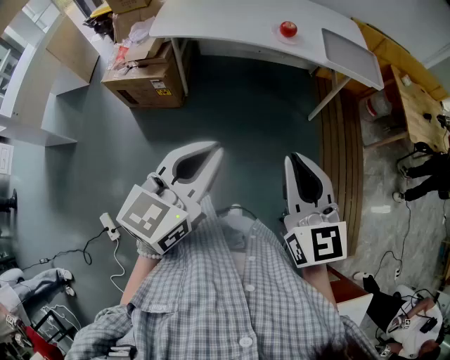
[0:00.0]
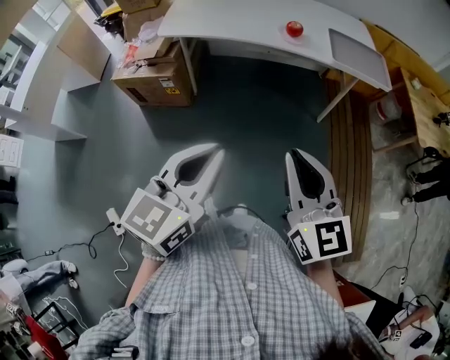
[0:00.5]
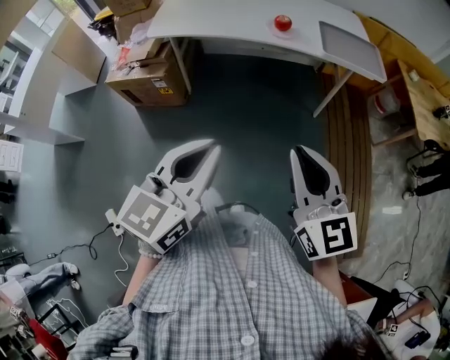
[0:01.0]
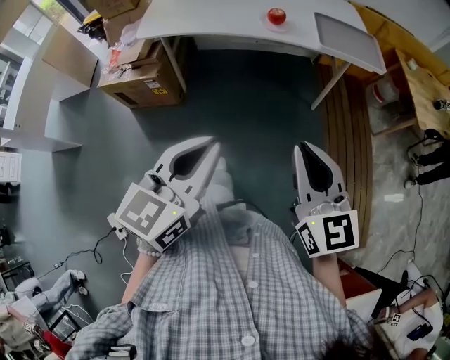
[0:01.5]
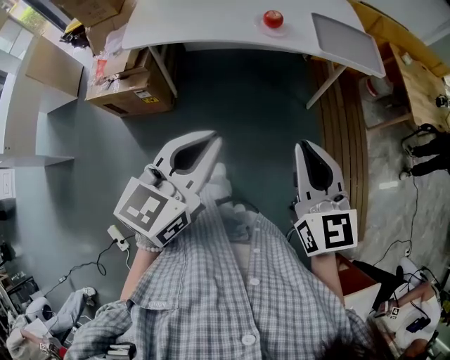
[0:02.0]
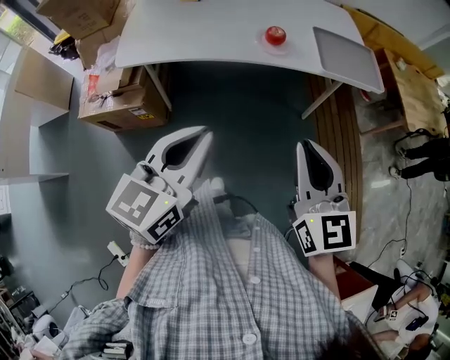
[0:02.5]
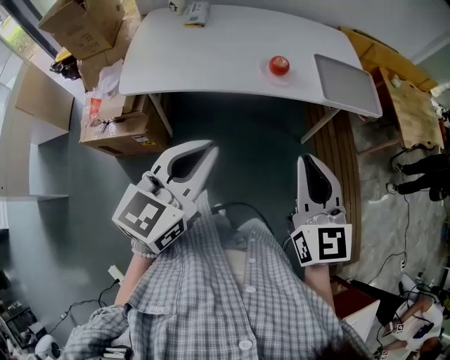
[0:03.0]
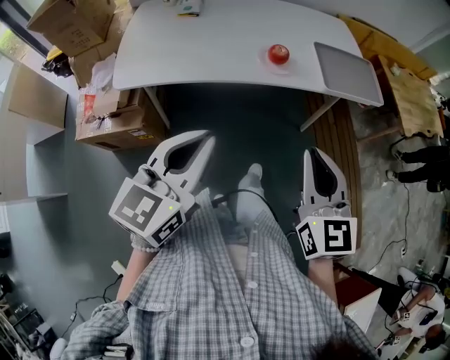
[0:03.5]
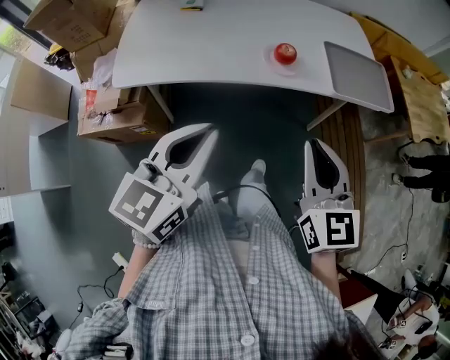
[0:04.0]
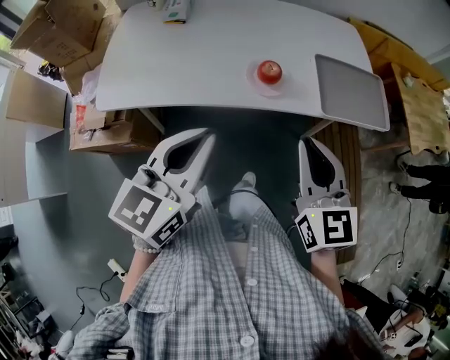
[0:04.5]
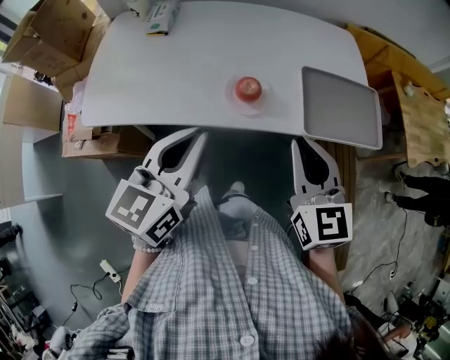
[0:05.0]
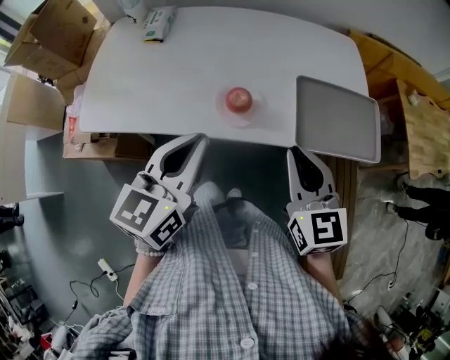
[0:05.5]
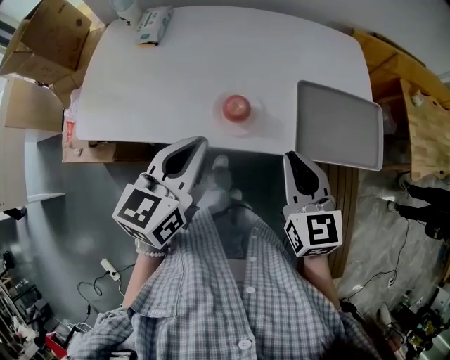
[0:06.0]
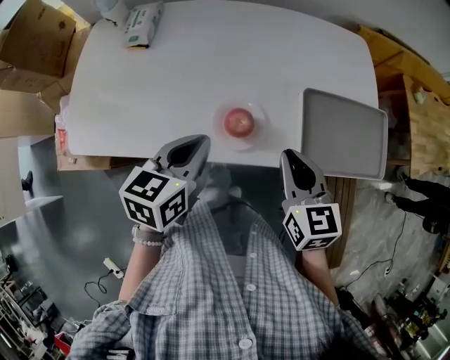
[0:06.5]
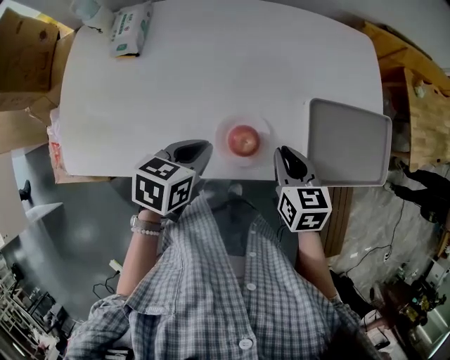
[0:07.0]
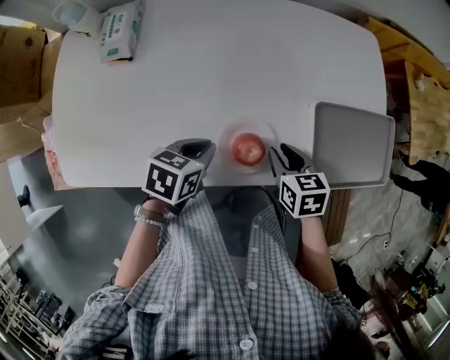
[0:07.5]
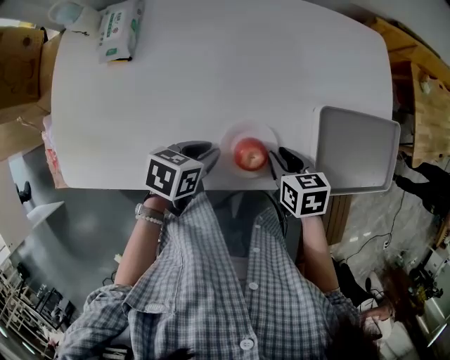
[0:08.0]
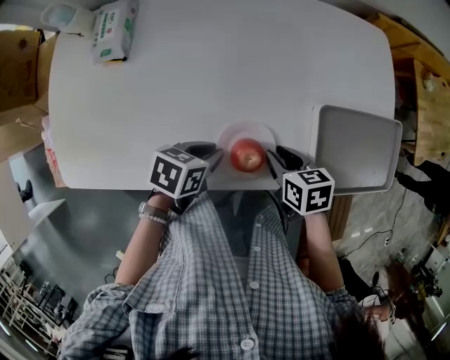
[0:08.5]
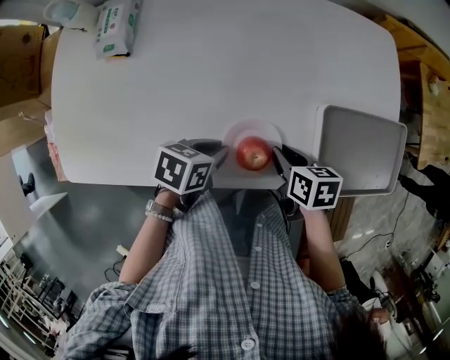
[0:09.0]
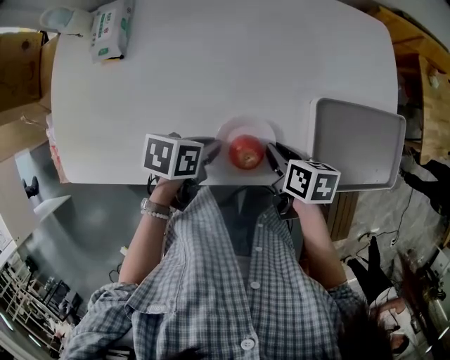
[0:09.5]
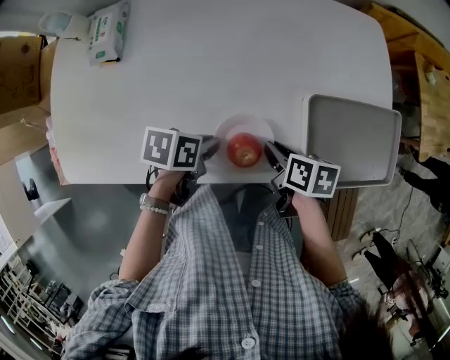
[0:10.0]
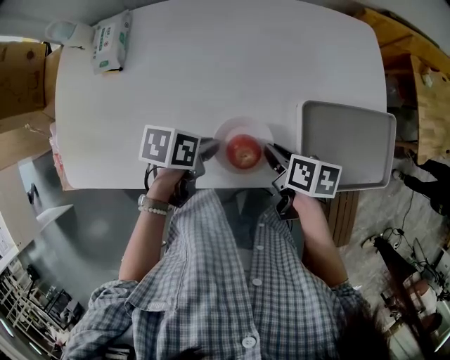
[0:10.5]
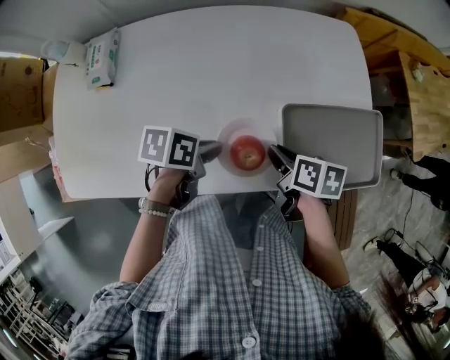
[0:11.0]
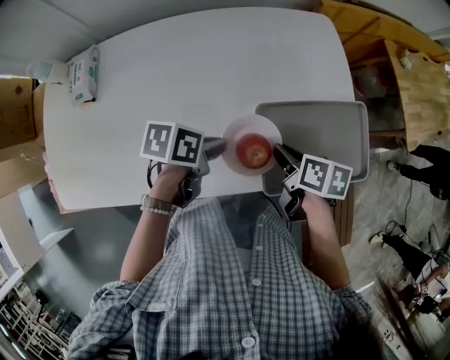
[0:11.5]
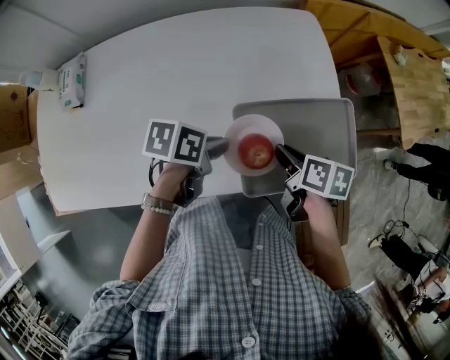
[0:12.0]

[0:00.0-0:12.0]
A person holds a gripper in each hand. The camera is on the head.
0:00.0 to 0:02.0: Both grippers travel together forward, roughly 10 cm.
0:02.0 to 0:04.0: The right gripper moves forward, roughly 15 cm; the left gripper travels forward and to the left by approximately 20 cm.
0:04.0 to 0:06.0: The grippers both shift forward and to the right by roughly 25 cm.
0:06.0 to 0:08.0: Both grippers travel together downward and forward, approximately 25 cm. The left gripper swivels roughly 50 degrees; the right gripper angles its fingers downward, by roughly 40 degrees.
0:08.0 to 0:10.0: The right gripper swivels some 30 degrees.
0:10.0 to 0:12.0: The grippers both shift to the right and forward by about 20 cm.

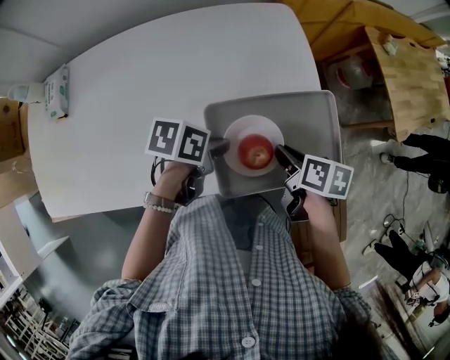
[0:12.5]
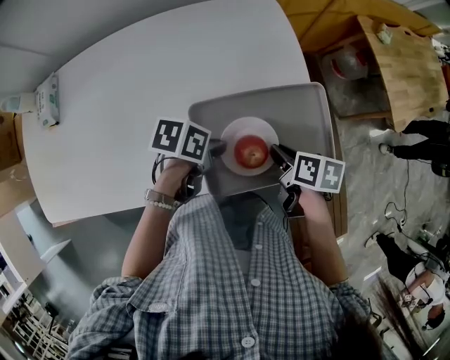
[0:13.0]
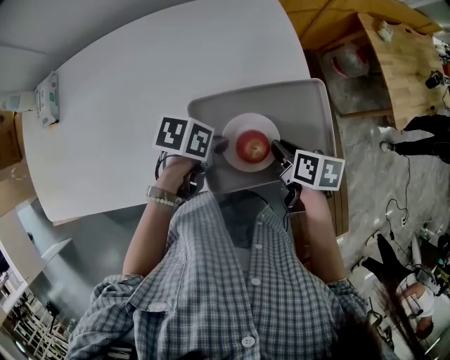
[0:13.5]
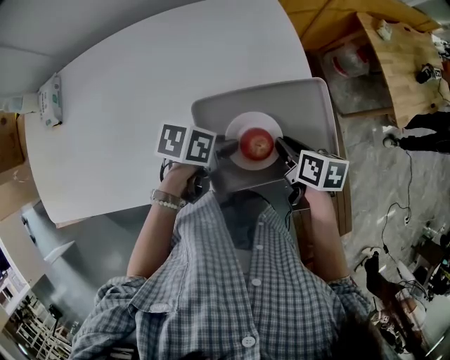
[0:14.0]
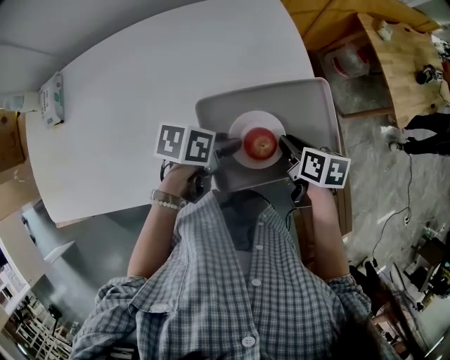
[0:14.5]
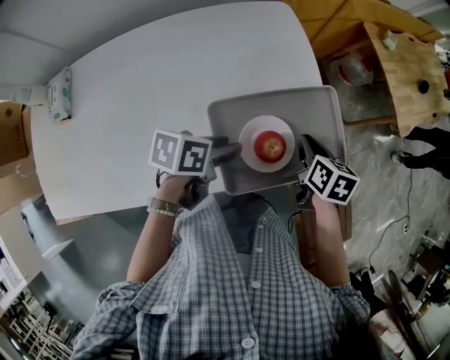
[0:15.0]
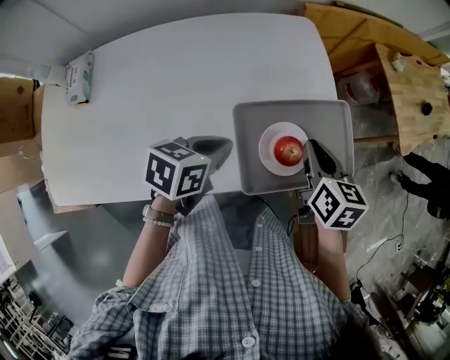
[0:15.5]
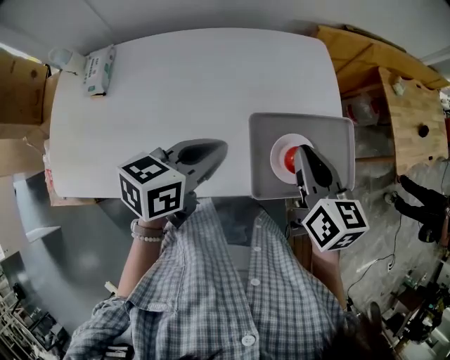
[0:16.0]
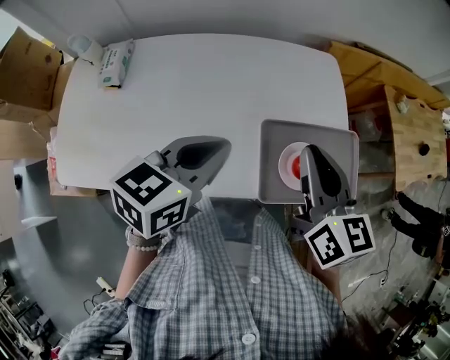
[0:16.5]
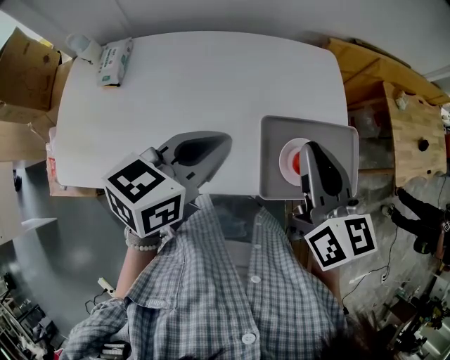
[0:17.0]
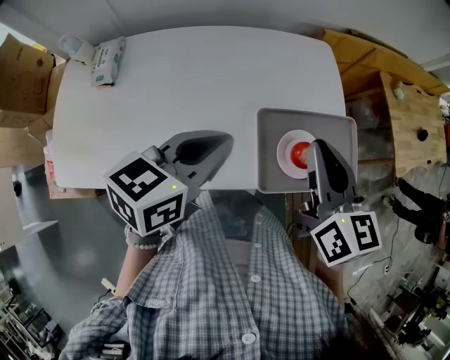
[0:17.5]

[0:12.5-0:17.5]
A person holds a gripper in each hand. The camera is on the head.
0:12.5 to 0:15.0: The left gripper opens, while the right gripper ends up roughly 5 cm from where it was, and changes its angle by approximately 20 degrees.
0:15.0 to 0:17.5: The grippers both shift upward and to the left by some 25 cm. The right gripper points its fingers about 30 degrees further upward, while the left gripper swivels approximately 40 degrees, and closes up.

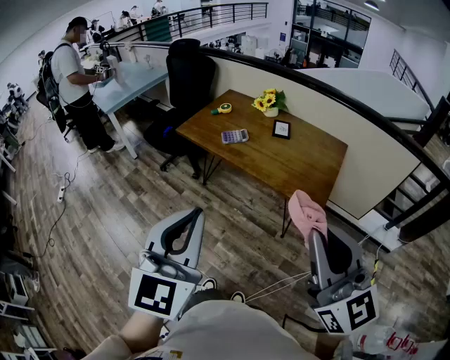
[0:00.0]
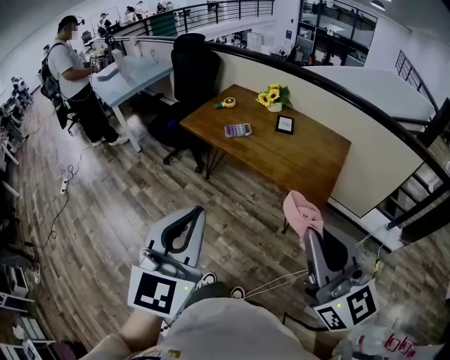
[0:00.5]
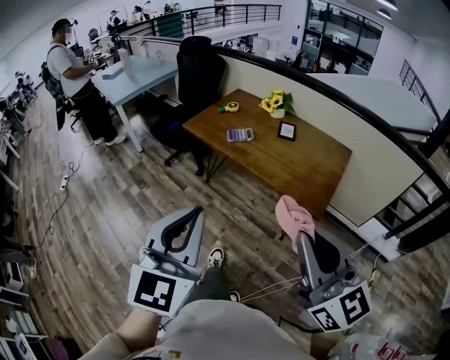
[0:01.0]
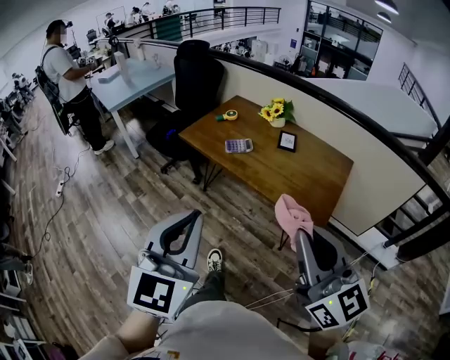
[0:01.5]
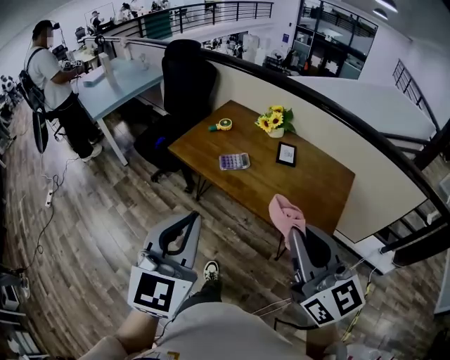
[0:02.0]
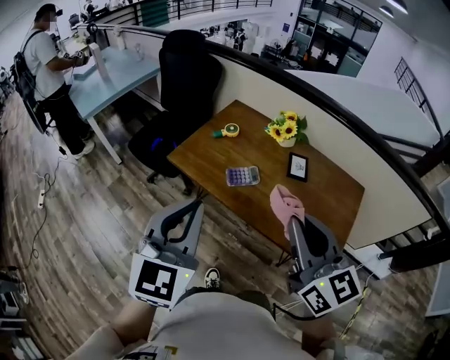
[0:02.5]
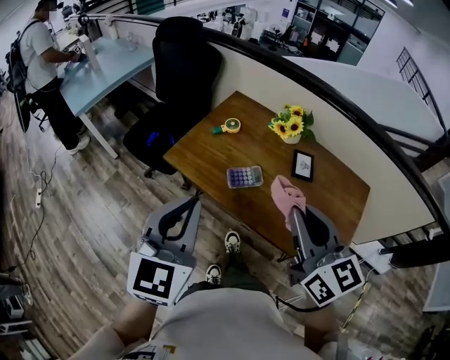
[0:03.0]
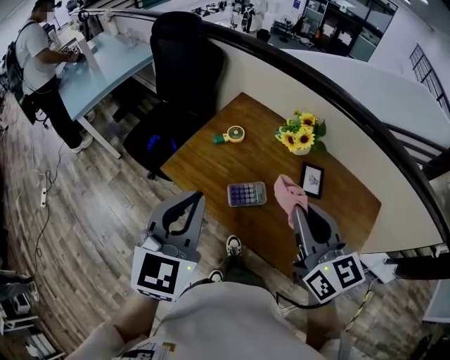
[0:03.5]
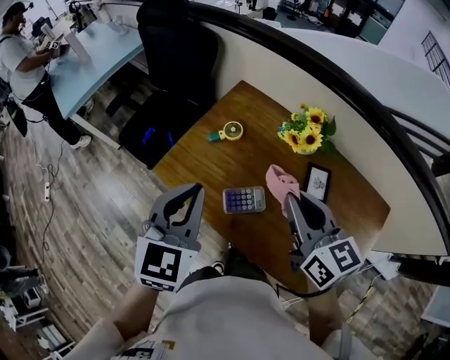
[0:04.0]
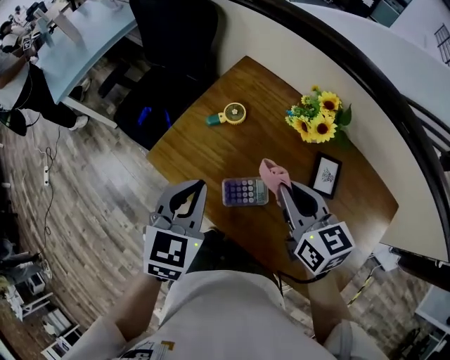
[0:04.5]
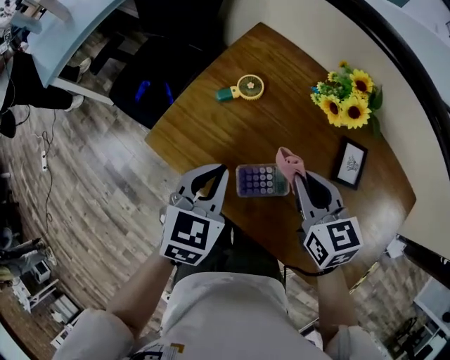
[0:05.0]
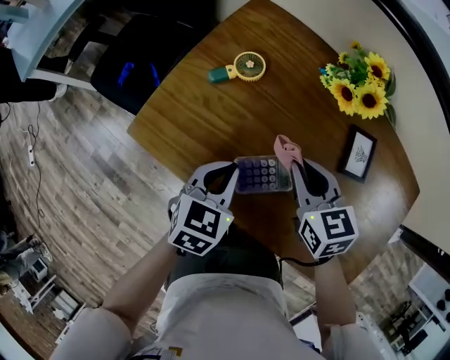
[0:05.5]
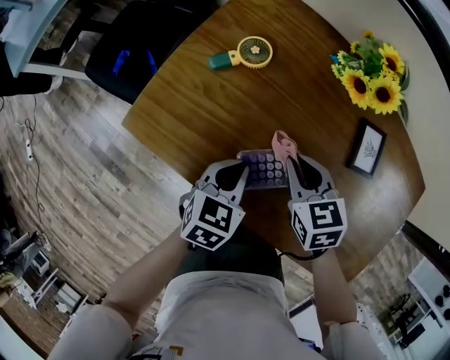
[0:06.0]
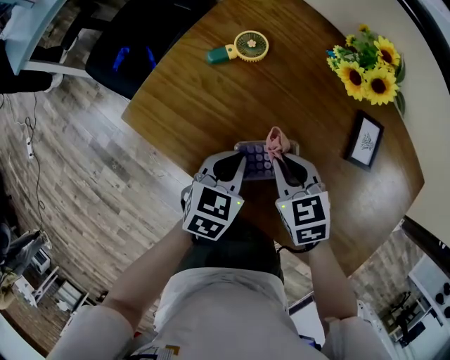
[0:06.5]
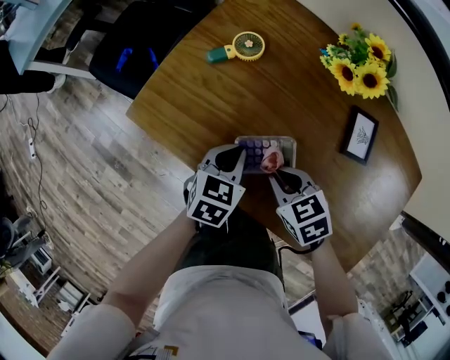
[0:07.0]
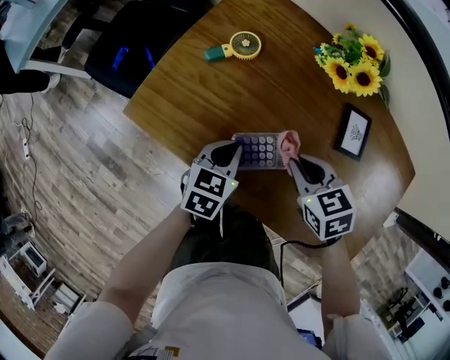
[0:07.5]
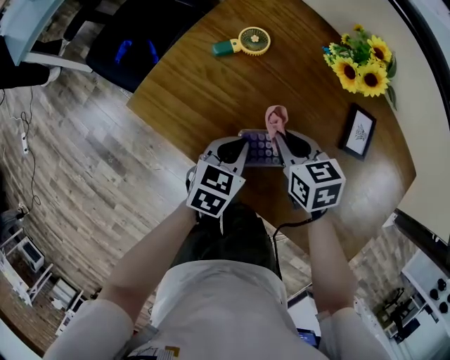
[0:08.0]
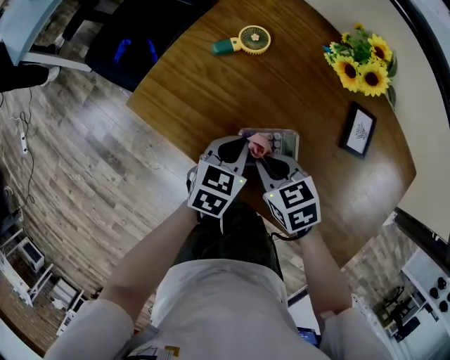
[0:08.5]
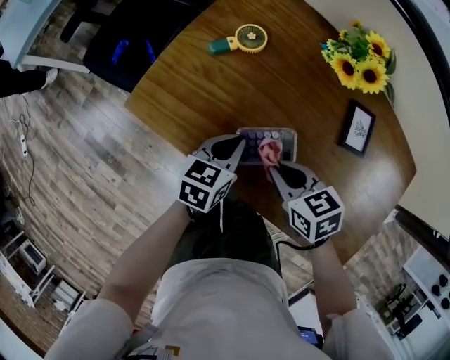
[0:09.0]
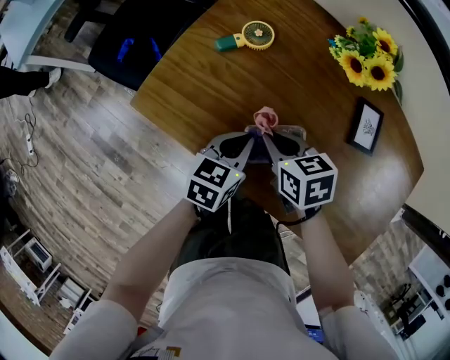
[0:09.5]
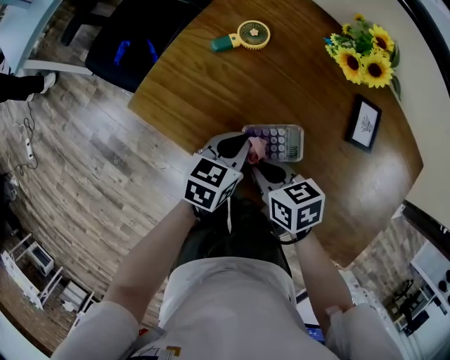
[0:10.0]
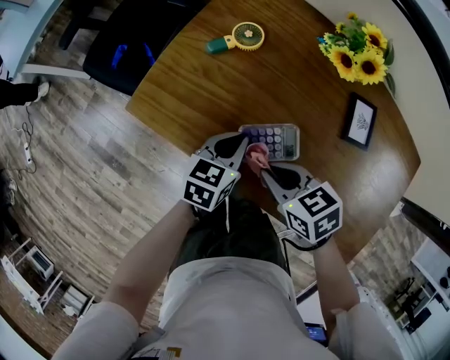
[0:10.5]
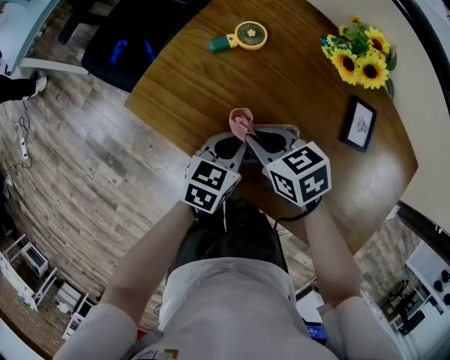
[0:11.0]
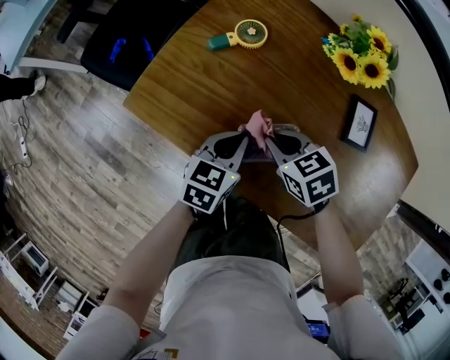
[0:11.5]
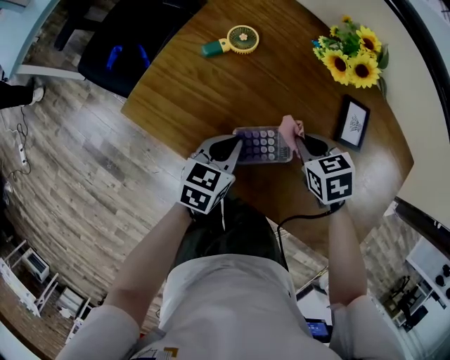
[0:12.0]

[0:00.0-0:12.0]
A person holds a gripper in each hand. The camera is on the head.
0:00.0 to 0:02.0: The grippers both shift forward by some 20 cm.
0:02.0 to 0:04.0: The pair of grippers is taken forward, about 50 cm. The right gripper rotates roughly 20 degrees.
0:04.0 to 0:06.0: The two grippers go about 35 cm downward. The right gripper points its fingers some 30 degrees further downward. The left gripper changes its angle by about 30 degrees.
0:06.0 to 0:08.0: The right gripper goes backward and returns, approximately 10 cm each way.
0:08.0 to 0:10.0: The right gripper swings forward and backward, some 10 cm each way, with 2 reversals.
0:10.0 to 0:12.0: The right gripper travels to the right and forward by roughly 15 cm, and changes its angle by about 30 degrees.
